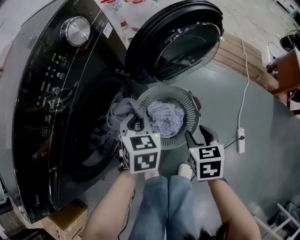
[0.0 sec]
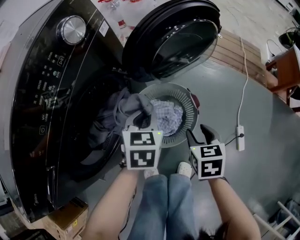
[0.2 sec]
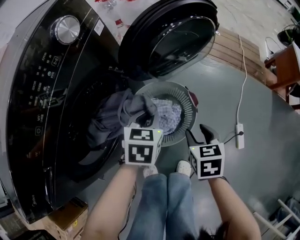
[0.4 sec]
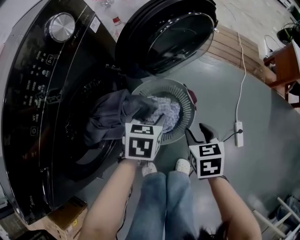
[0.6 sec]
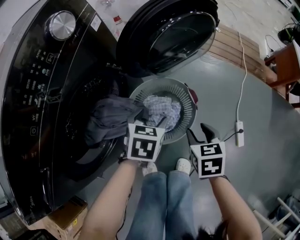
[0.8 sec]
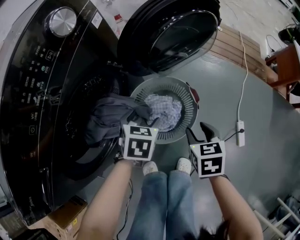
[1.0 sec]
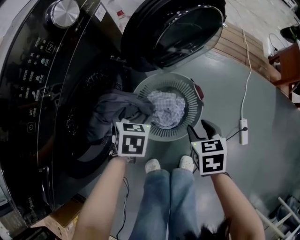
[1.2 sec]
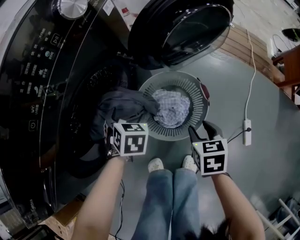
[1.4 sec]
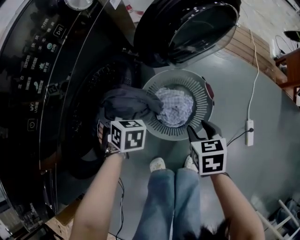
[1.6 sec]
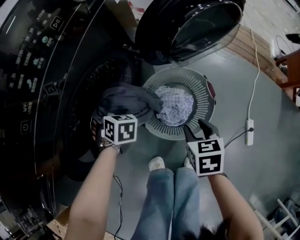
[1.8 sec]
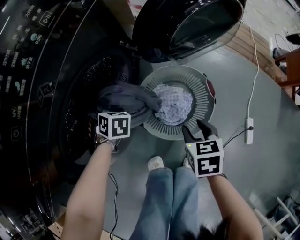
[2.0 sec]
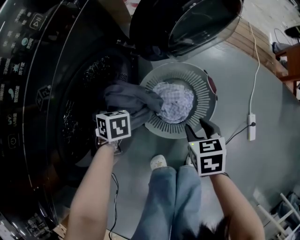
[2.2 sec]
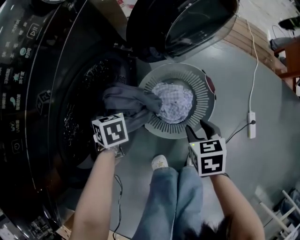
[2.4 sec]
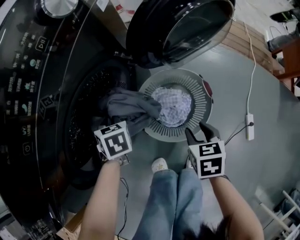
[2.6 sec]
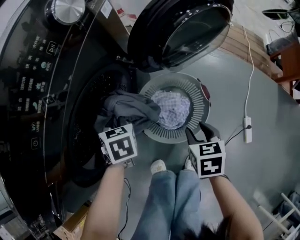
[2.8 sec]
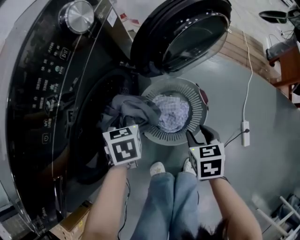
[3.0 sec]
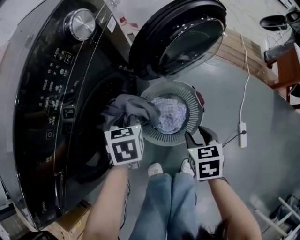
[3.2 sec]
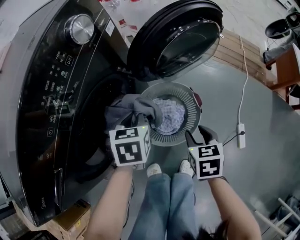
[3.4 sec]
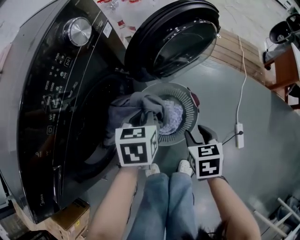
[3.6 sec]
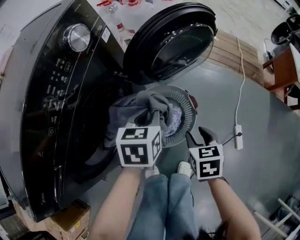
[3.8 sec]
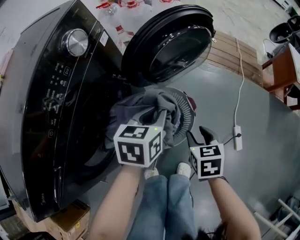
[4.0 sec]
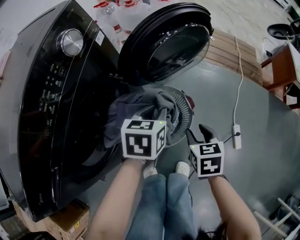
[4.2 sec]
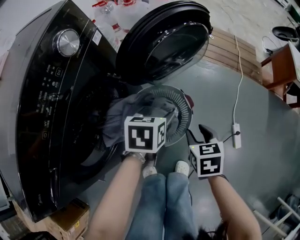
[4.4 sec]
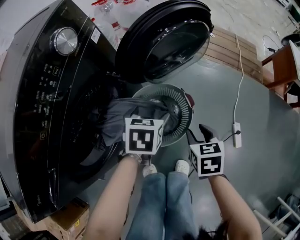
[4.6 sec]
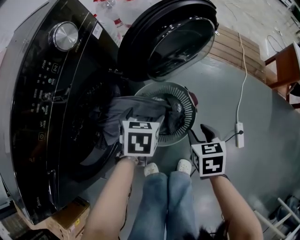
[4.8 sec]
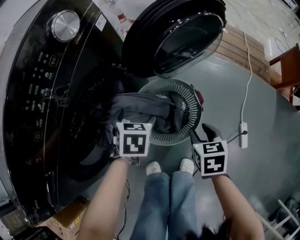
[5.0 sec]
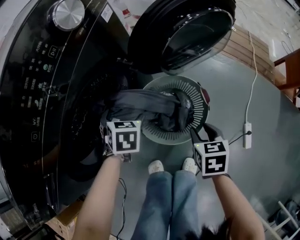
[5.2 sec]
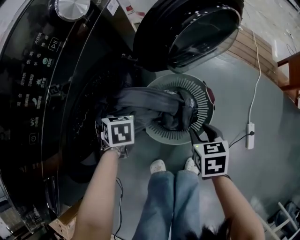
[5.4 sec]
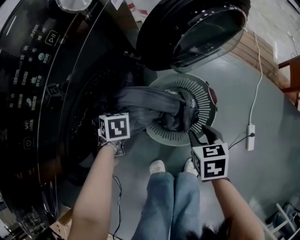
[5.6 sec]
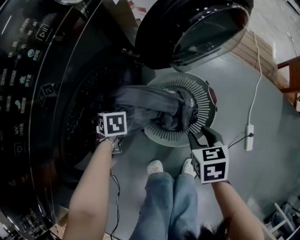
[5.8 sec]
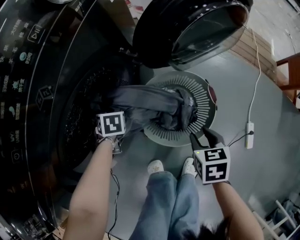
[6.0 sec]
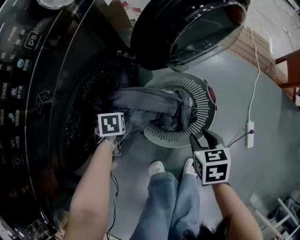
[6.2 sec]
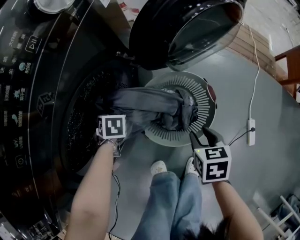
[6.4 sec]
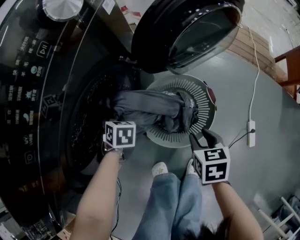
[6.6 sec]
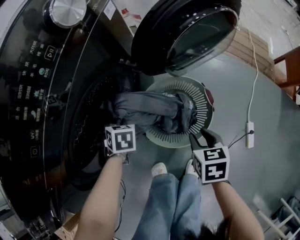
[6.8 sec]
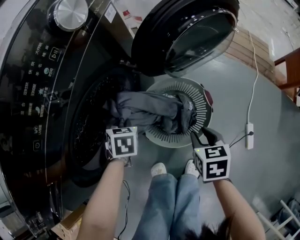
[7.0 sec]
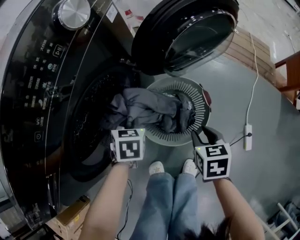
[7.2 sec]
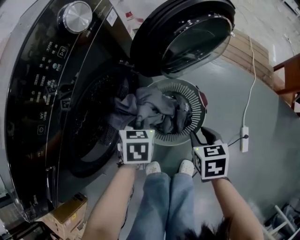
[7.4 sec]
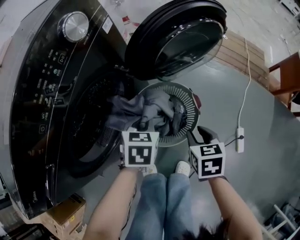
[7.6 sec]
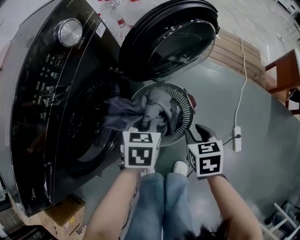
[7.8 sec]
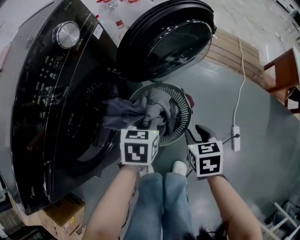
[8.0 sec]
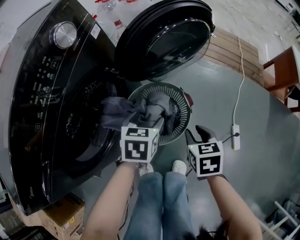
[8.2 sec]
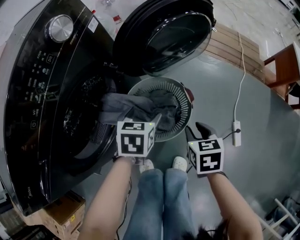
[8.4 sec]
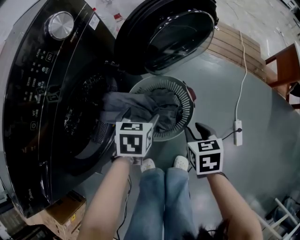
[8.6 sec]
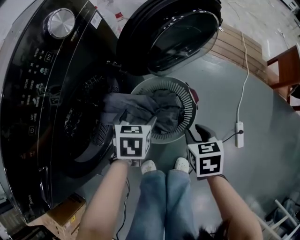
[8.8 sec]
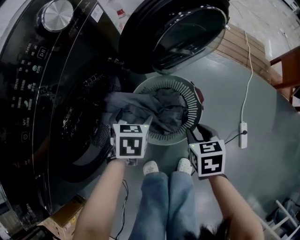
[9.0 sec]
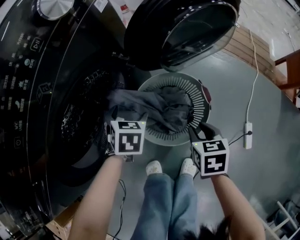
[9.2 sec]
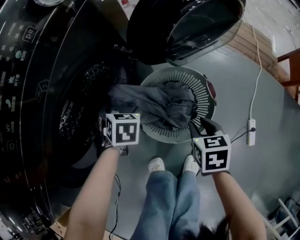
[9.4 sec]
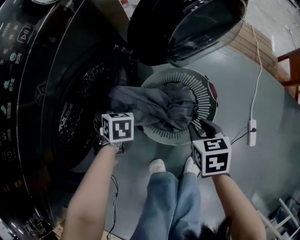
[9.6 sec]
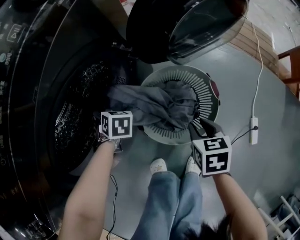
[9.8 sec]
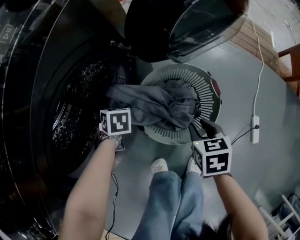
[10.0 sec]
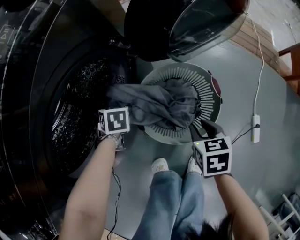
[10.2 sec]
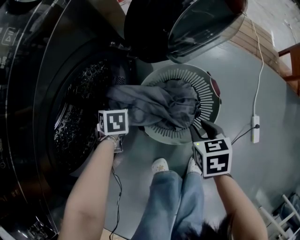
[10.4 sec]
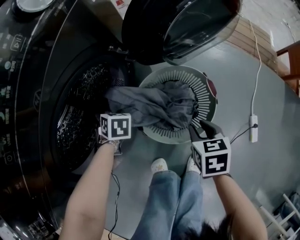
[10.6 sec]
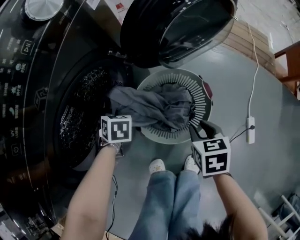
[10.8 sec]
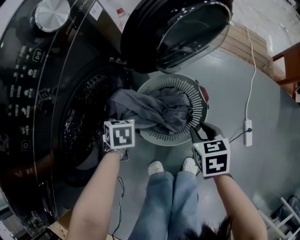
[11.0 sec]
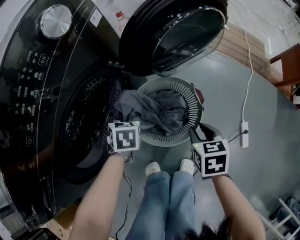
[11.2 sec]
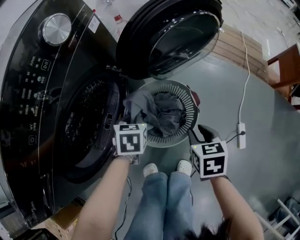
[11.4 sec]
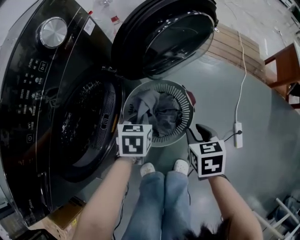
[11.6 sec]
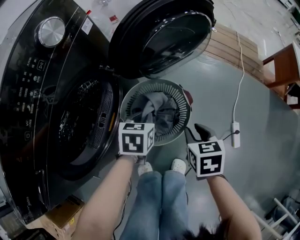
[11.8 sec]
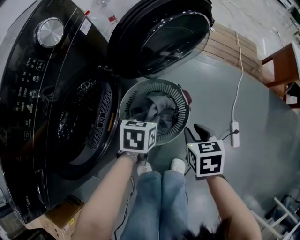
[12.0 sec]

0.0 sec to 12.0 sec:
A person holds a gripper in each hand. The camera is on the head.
0.0 sec to 1.6 sec: The left gripper shifts by about 15 cm, turns by about 20 degrees, and opens its fingers, while the right gripper moves downward, some 5 cm.
1.6 sec to 3.0 sec: The left gripper shifts approximately 5 cm upward, and closes up.
3.0 sec to 4.4 sec: The right gripper shifts some 5 cm to the right; the left gripper travels to the right by roughly 20 cm, rotates about 30 degrees, and opens.
4.4 sec to 6.0 sec: The right gripper is displaced downward by roughly 10 cm, while the left gripper changes place by roughly 35 cm, and turns by roughly 40 degrees.
6.0 sec to 7.6 sec: The right gripper is displaced upward by approximately 5 cm. The left gripper changes place by roughly 25 cm, rotates some 30 degrees, and closes up.
7.6 sec to 9.0 sec: The left gripper moves downward, approximately 5 cm, and opens its fingers.
9.0 sec to 10.4 sec: The right gripper is displaced downward by approximately 5 cm. Meanwhile the left gripper goes approximately 20 cm to the left, downward and forward.
10.4 sec to 12.0 sec: The left gripper changes place by approximately 30 cm, swivels roughly 30 degrees, and closes up. Meanwhile the right gripper heads upward, covering roughly 10 cm.

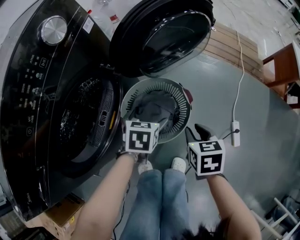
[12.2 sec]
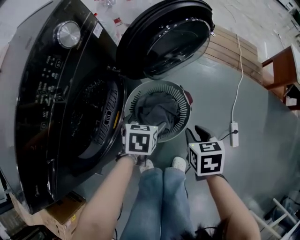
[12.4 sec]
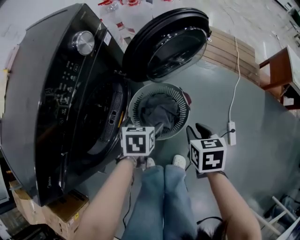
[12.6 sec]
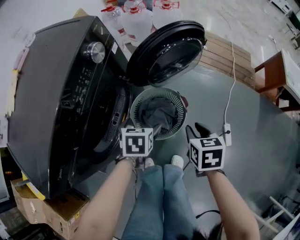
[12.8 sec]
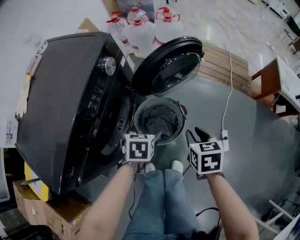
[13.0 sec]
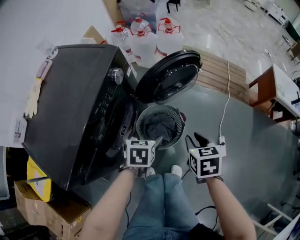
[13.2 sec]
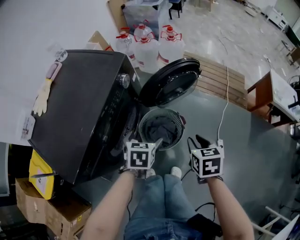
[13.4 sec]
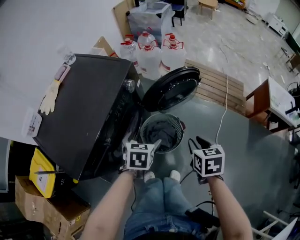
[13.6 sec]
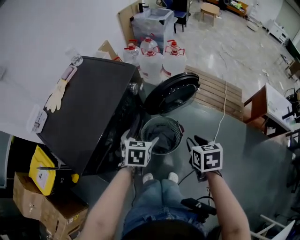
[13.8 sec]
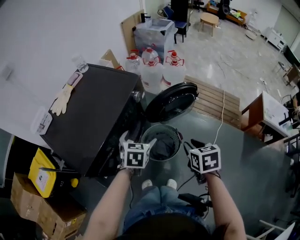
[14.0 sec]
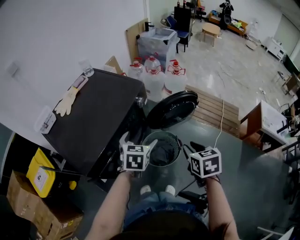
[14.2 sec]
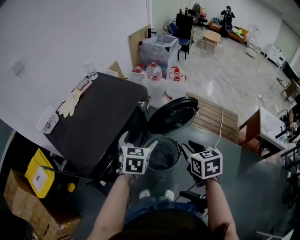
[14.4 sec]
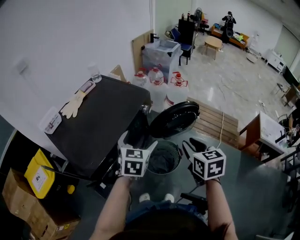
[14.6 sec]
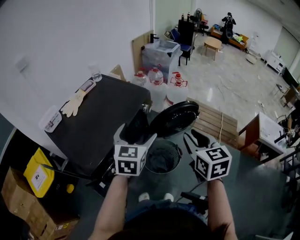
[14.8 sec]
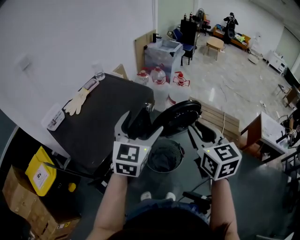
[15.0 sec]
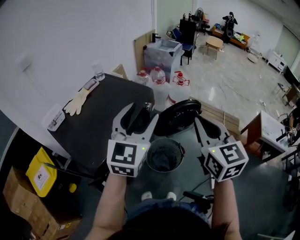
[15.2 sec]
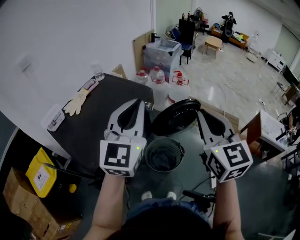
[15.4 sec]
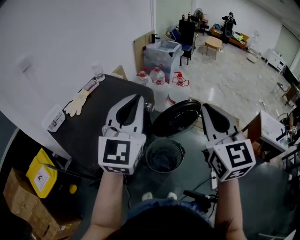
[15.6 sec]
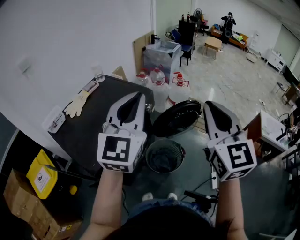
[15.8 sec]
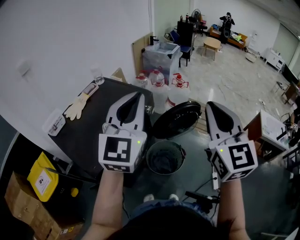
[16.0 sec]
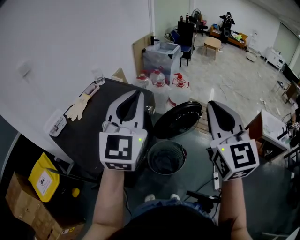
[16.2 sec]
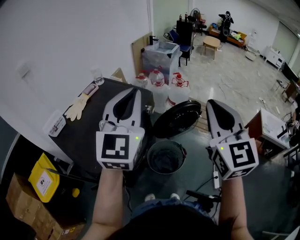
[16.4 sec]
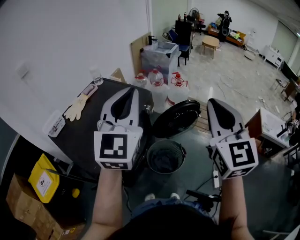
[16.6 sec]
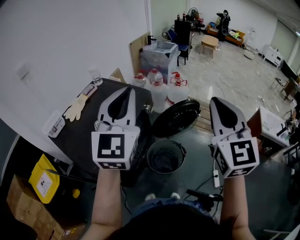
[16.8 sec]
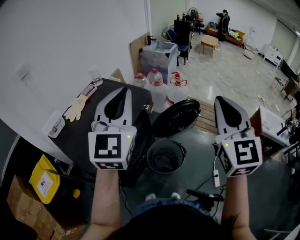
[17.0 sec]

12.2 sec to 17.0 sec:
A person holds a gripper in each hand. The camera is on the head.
12.2 sec to 13.8 sec: The grippers both shift upward by roughly 35 cm.
13.8 sec to 15.4 sec: The grippers both shift upward by approximately 35 cm. The right gripper angles its fingers upward, by some 50 degrees; the left gripper tilts its fingers approximately 60 degrees upward, and closes.
15.4 sec to 17.0 sec: The right gripper goes approximately 5 cm upward, while the left gripper moves approximately 5 cm.

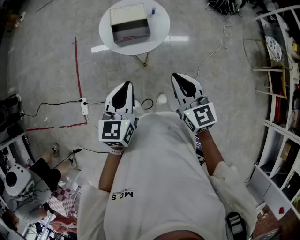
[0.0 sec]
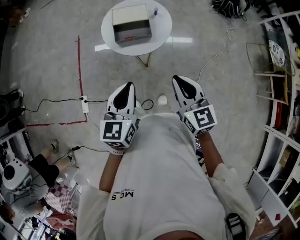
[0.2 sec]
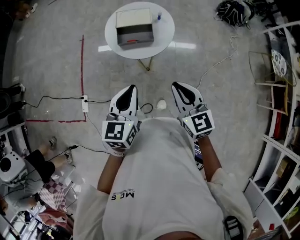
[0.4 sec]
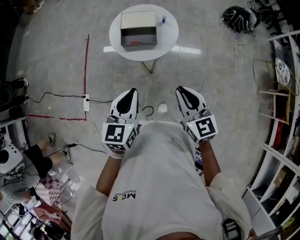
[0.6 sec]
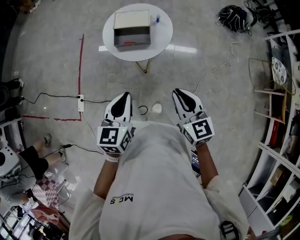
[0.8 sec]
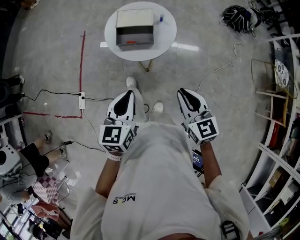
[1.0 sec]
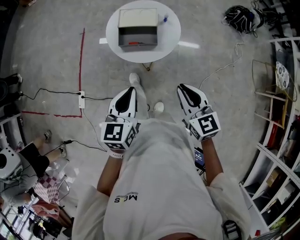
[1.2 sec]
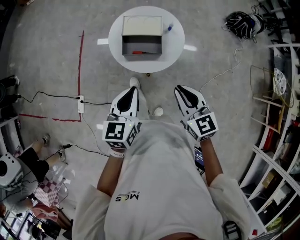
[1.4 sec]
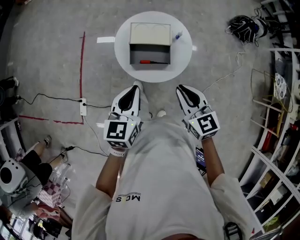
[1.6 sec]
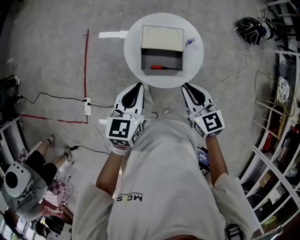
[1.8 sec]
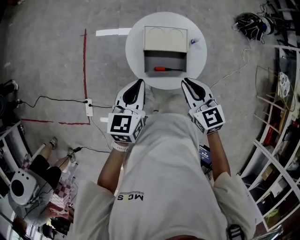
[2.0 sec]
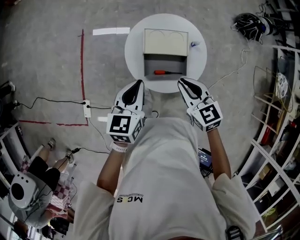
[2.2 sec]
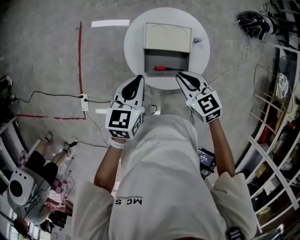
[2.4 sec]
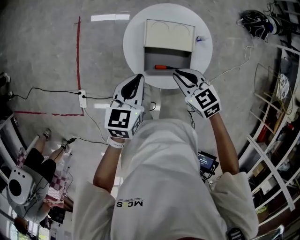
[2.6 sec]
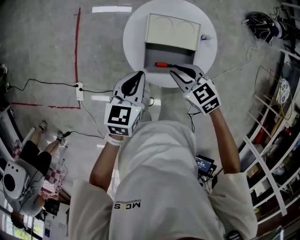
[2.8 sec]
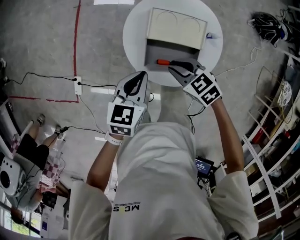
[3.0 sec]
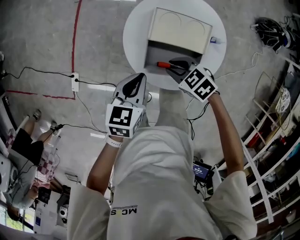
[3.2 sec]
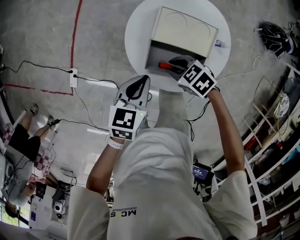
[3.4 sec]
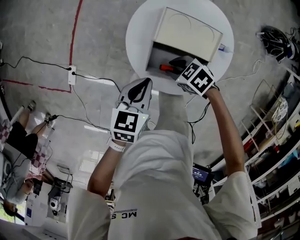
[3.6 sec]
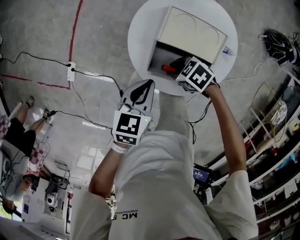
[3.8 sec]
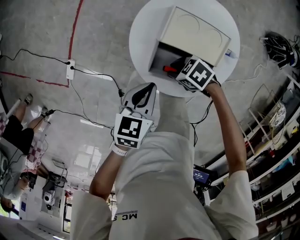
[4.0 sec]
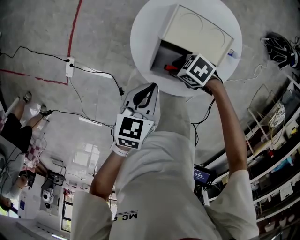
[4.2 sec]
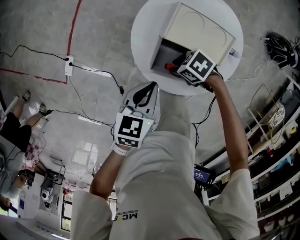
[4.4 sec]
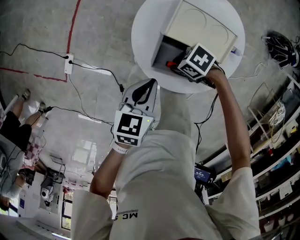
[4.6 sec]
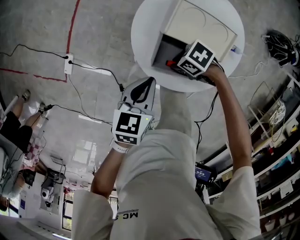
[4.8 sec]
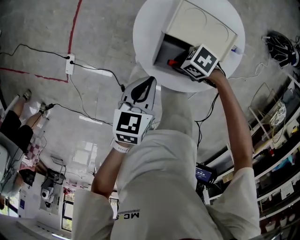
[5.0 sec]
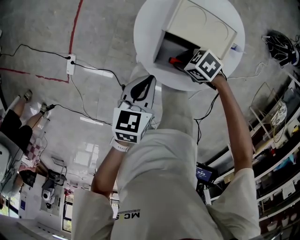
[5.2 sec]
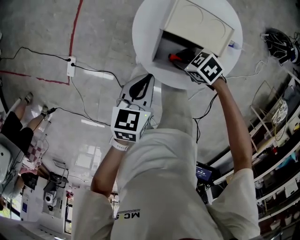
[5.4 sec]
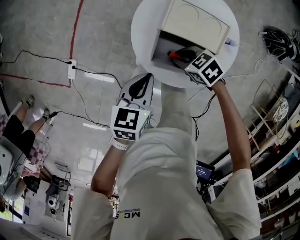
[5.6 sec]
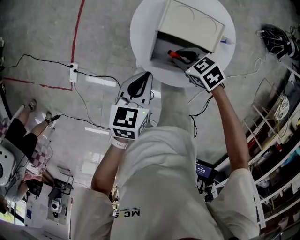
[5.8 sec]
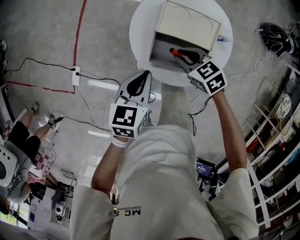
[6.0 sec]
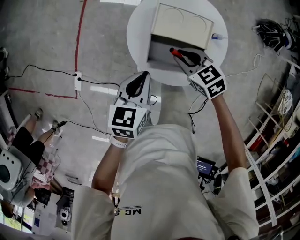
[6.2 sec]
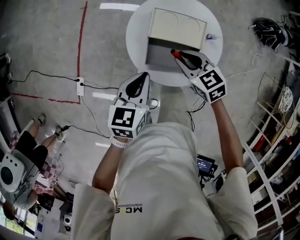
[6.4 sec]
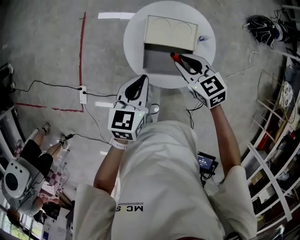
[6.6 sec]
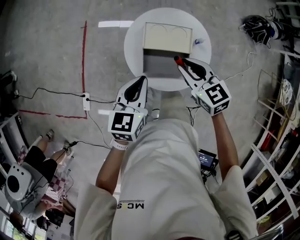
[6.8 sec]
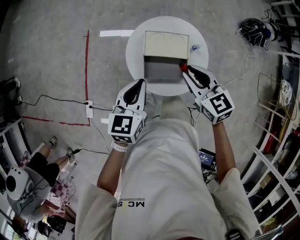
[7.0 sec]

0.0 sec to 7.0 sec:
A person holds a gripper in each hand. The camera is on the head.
0.0 sec to 1.4 sec: Both grippers travel together forward and downward, approximately 15 cm.
1.4 sec to 2.8 sec: The right gripper shifts approximately 30 cm forward, downward and to the left, and changes its angle by roughly 30 degrees. Meanwhile the left gripper moves forward and downward, roughly 25 cm.
2.8 sec to 4.2 sec: The right gripper moves downward, about 20 cm, and rotates about 50 degrees; the left gripper heads downward, covering roughly 10 cm.
4.2 sec to 5.6 sec: The right gripper changes its angle by roughly 20 degrees.
5.6 sec to 7.0 sec: The right gripper moves upward, roughly 25 cm, and swivels approximately 50 degrees, while the left gripper is displaced upward by about 15 cm, and turns by about 20 degrees.
